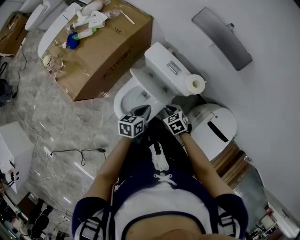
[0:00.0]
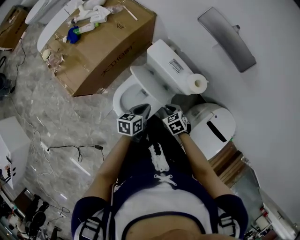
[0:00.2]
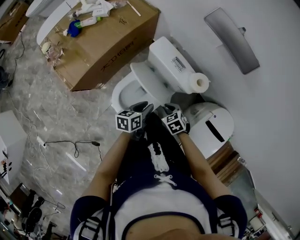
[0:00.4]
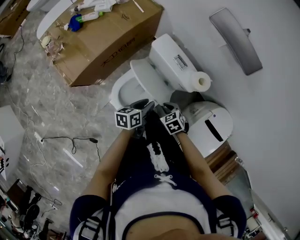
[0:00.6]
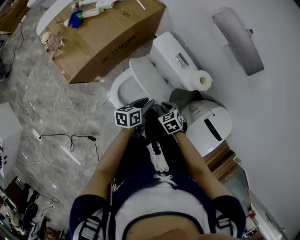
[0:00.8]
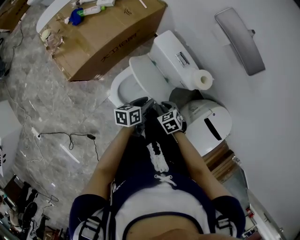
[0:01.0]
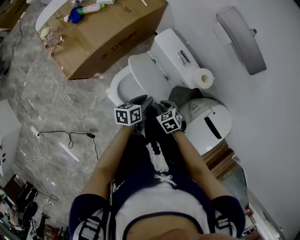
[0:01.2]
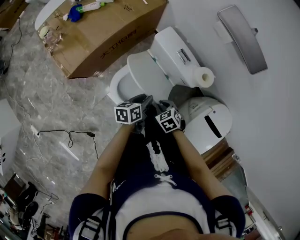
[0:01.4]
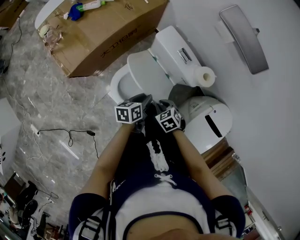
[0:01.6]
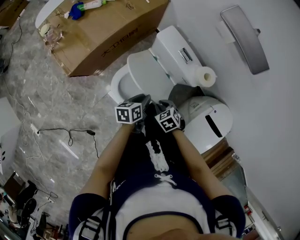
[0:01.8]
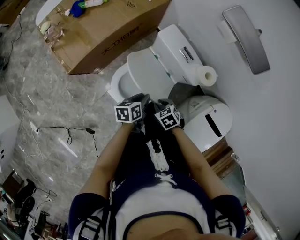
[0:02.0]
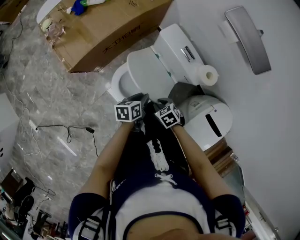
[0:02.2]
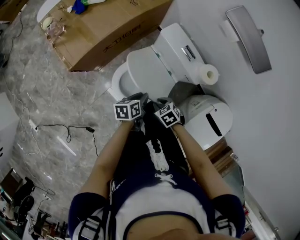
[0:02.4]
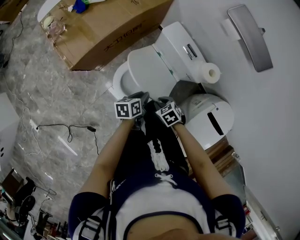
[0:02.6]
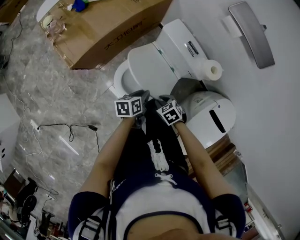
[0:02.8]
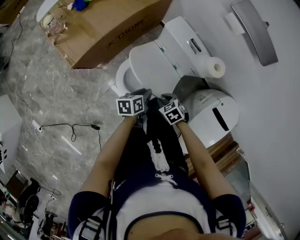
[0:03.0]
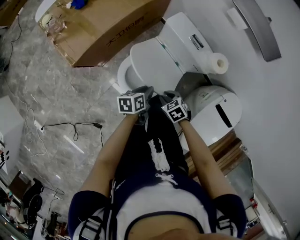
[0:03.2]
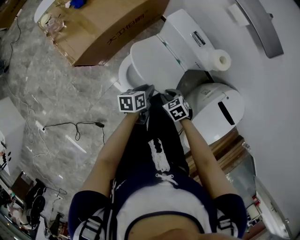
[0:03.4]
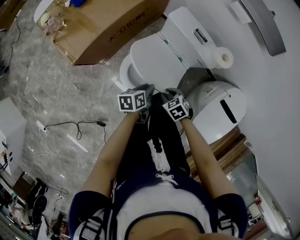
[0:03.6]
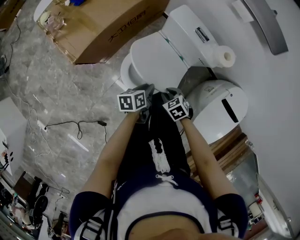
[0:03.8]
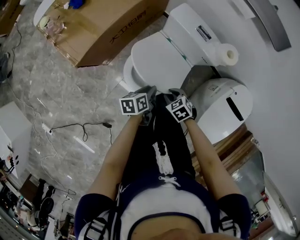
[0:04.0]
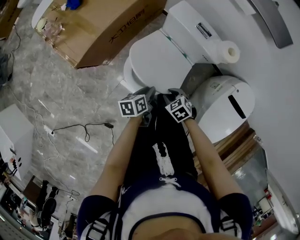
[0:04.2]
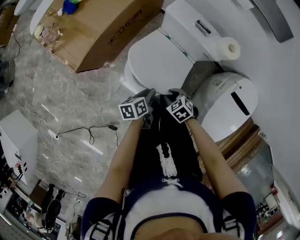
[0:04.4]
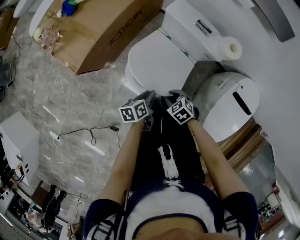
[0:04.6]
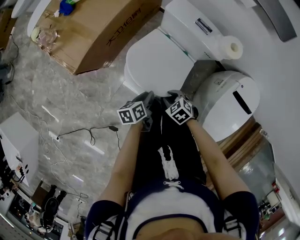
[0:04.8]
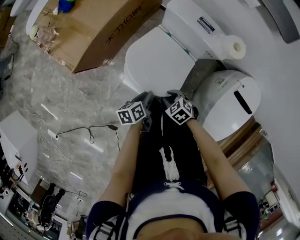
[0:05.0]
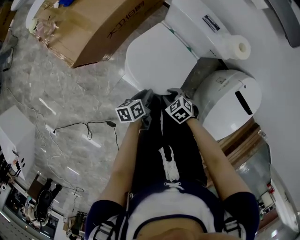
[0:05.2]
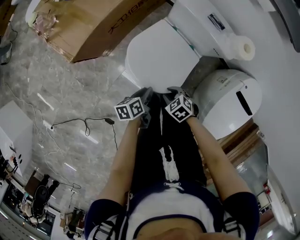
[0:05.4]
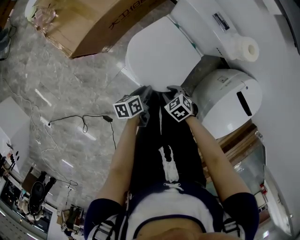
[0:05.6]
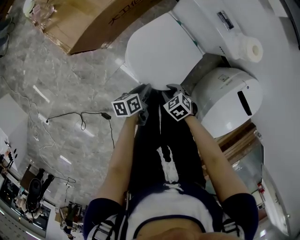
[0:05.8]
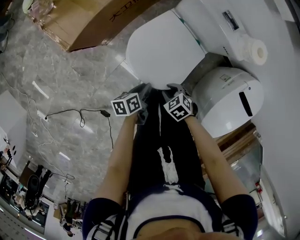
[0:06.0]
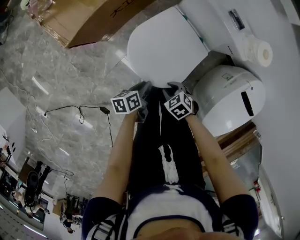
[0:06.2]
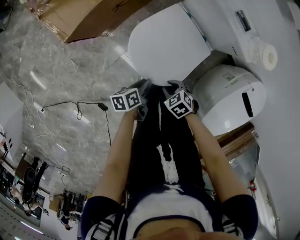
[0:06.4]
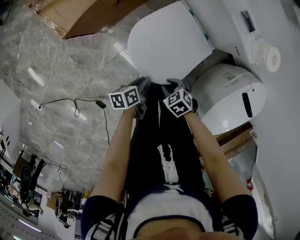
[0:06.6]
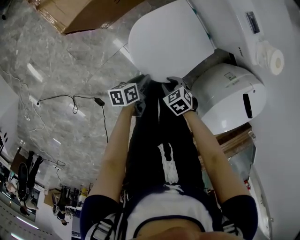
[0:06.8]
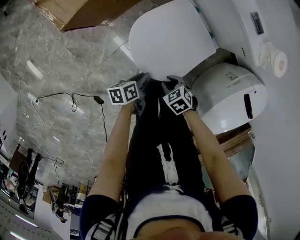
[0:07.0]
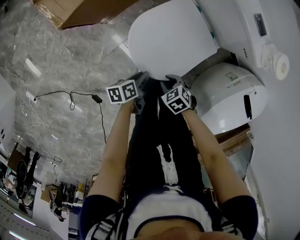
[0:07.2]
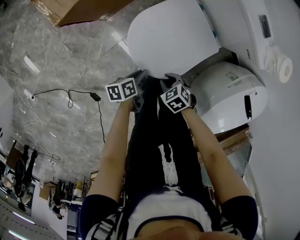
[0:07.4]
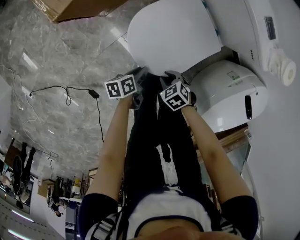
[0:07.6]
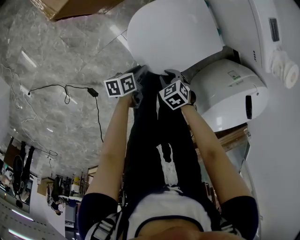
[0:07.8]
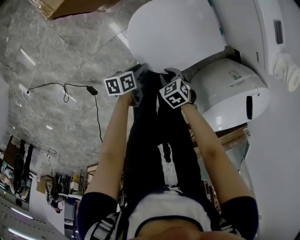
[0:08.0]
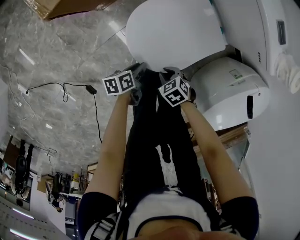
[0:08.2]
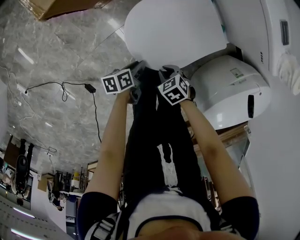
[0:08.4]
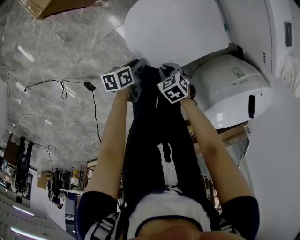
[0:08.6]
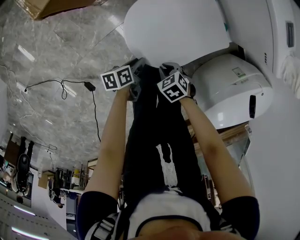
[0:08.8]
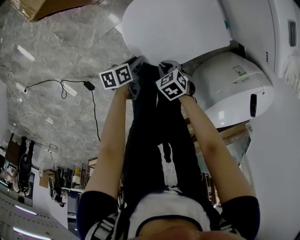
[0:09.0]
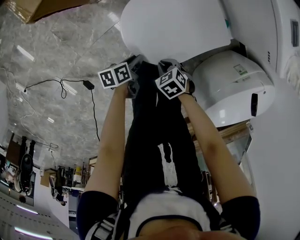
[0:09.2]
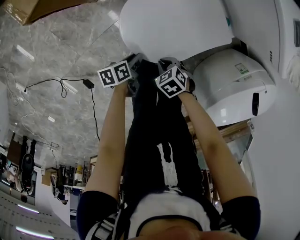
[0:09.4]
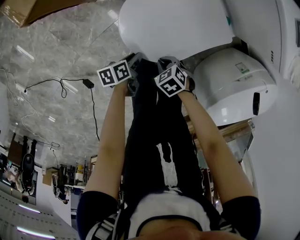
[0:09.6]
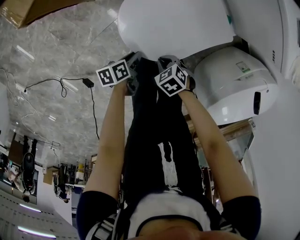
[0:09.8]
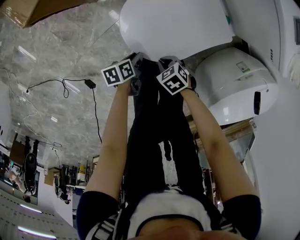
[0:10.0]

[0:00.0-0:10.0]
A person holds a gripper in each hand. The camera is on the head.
0:00.0 to 0:01.4: The right gripper is displaced to the left by some 5 cm, while the left gripper shifts by roughly 5 cm, and opens up.
0:01.4 to 0:02.8: The left gripper moves about 5 cm. The right gripper ends up about 5 cm from where it was.
0:02.8 to 0:04.2: The right gripper ends up approximately 5 cm from where it was; the left gripper moves about 5 cm.
0:04.2 to 0:05.8: The right gripper travels downward by about 5 cm; the left gripper moves downward and to the left, approximately 10 cm.
0:05.8 to 0:07.2: The two grippers go approximately 10 cm downward.
0:07.2 to 0:08.6: Both grippers move downward, about 10 cm.
0:08.6 to 0:10.0: There are only small adjustments of the grippers.

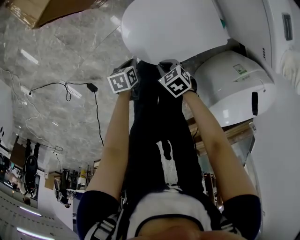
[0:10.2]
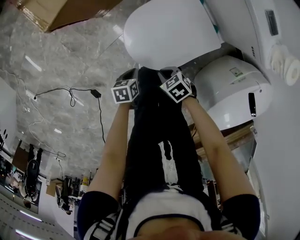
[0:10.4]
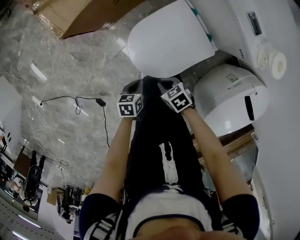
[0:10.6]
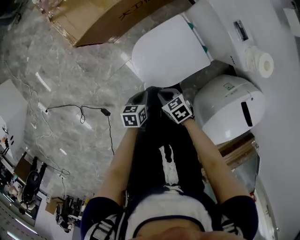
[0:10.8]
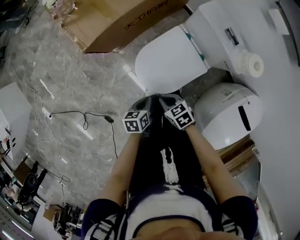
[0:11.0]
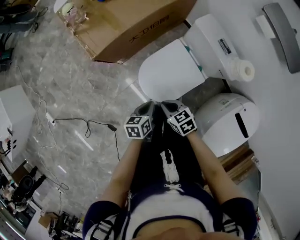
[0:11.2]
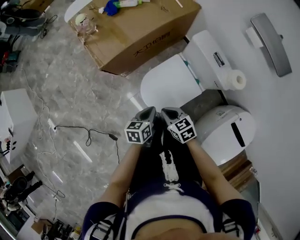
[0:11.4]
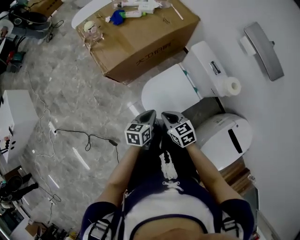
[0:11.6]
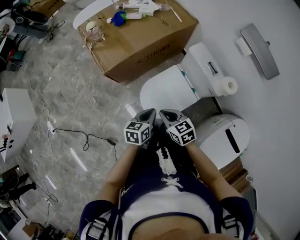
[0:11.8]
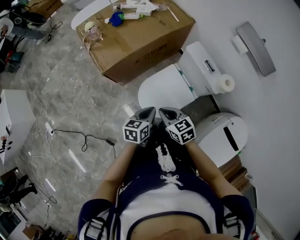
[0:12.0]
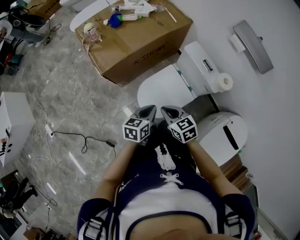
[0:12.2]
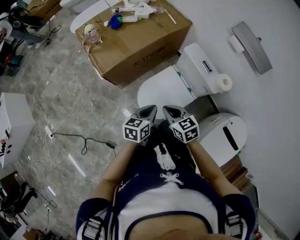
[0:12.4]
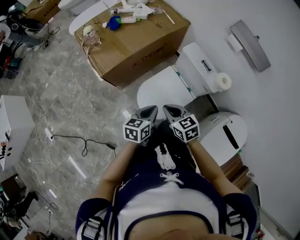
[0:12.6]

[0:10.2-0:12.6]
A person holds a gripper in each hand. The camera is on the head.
0:10.2 to 0:11.4: The two grippers go about 35 cm upward. The left gripper rotates some 30 degrees. The right gripper changes its angle by roughly 30 degrees.
0:11.4 to 0:12.6: The grippers both shift upward by roughly 10 cm.

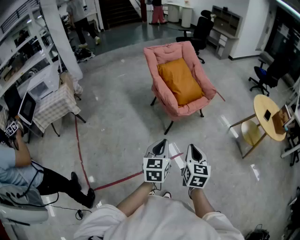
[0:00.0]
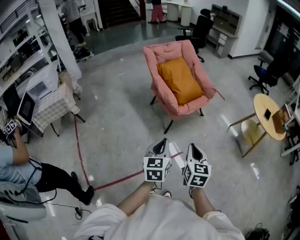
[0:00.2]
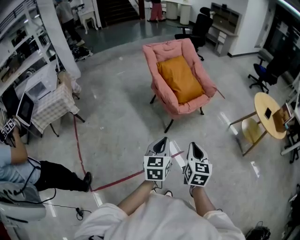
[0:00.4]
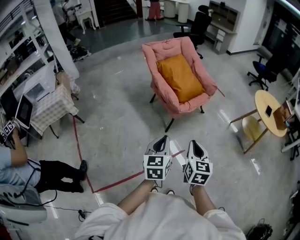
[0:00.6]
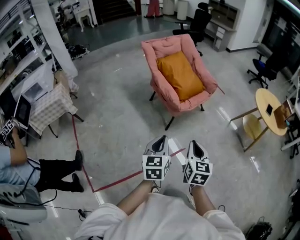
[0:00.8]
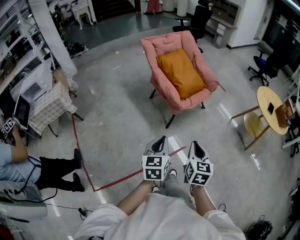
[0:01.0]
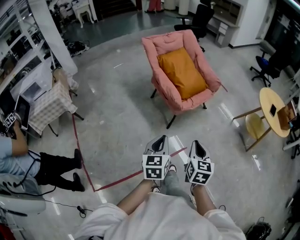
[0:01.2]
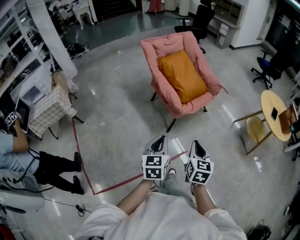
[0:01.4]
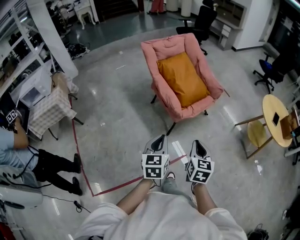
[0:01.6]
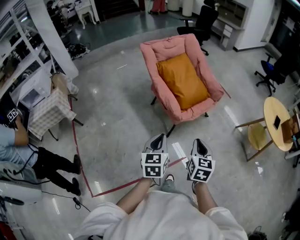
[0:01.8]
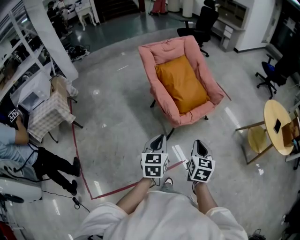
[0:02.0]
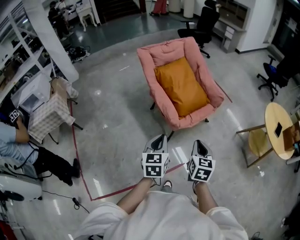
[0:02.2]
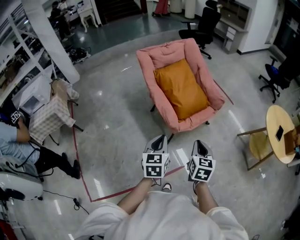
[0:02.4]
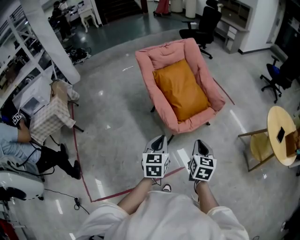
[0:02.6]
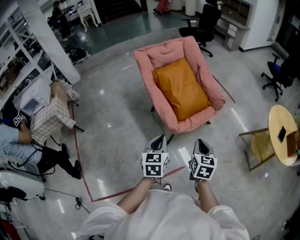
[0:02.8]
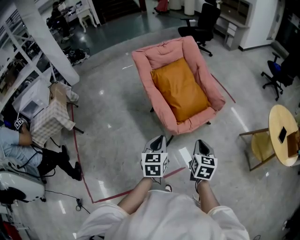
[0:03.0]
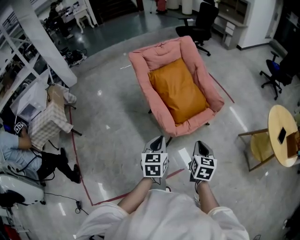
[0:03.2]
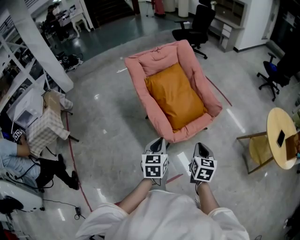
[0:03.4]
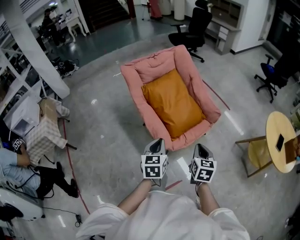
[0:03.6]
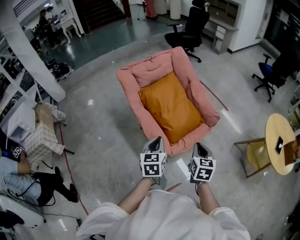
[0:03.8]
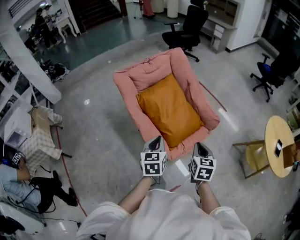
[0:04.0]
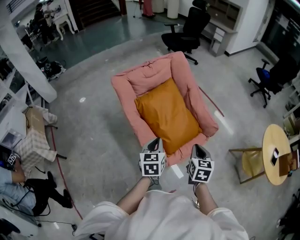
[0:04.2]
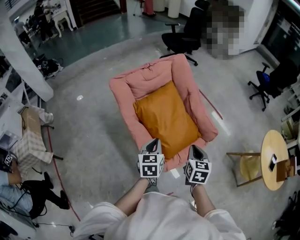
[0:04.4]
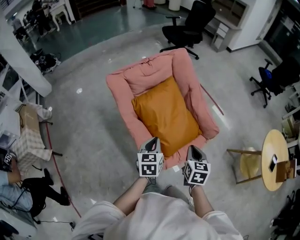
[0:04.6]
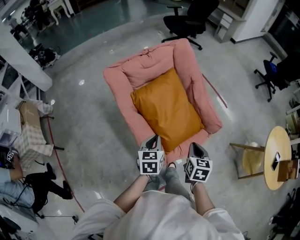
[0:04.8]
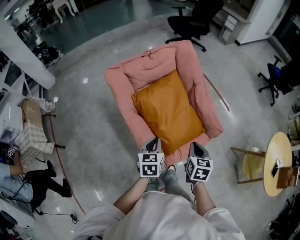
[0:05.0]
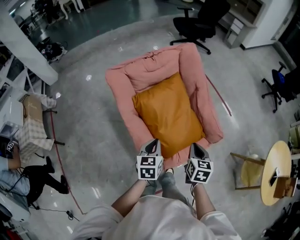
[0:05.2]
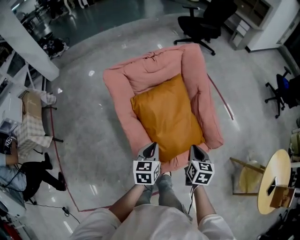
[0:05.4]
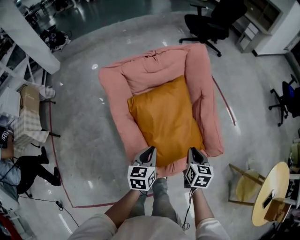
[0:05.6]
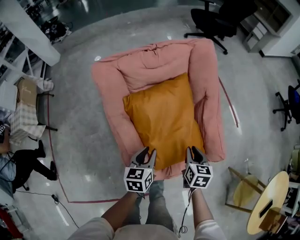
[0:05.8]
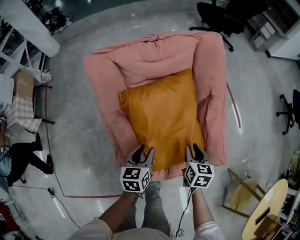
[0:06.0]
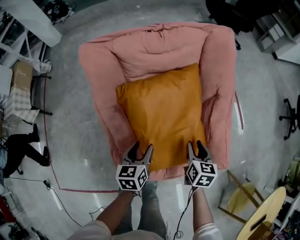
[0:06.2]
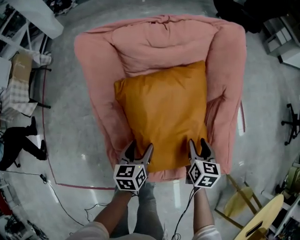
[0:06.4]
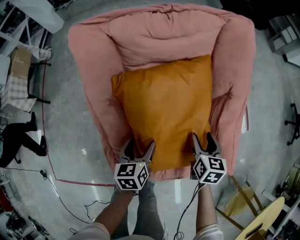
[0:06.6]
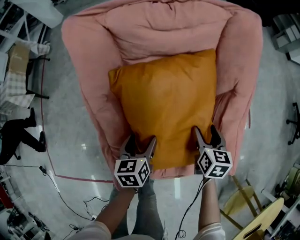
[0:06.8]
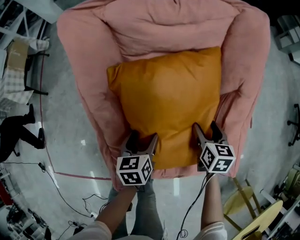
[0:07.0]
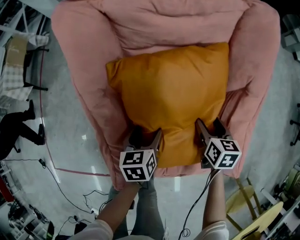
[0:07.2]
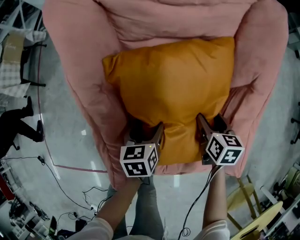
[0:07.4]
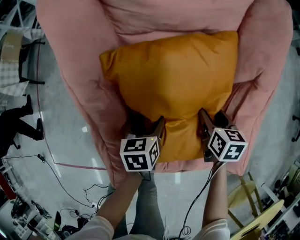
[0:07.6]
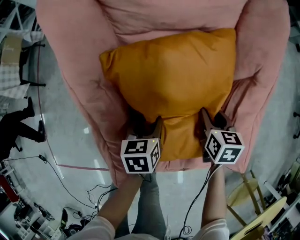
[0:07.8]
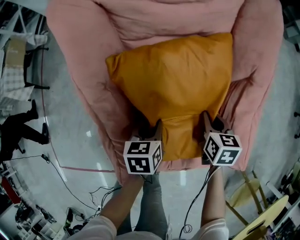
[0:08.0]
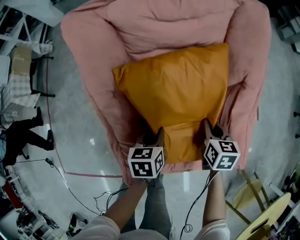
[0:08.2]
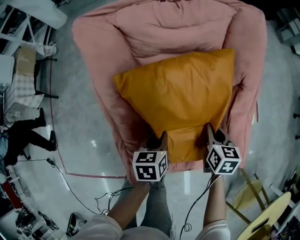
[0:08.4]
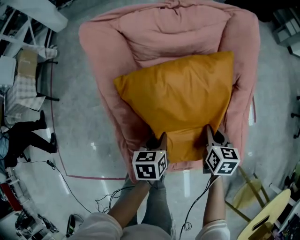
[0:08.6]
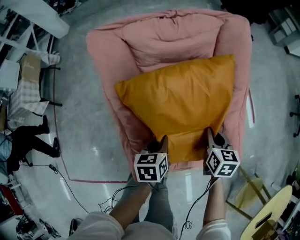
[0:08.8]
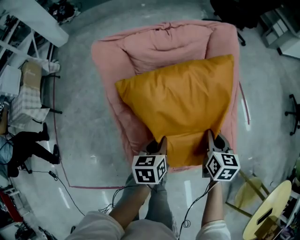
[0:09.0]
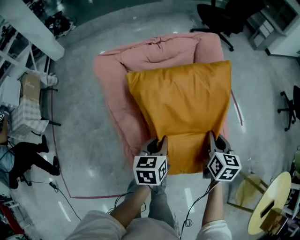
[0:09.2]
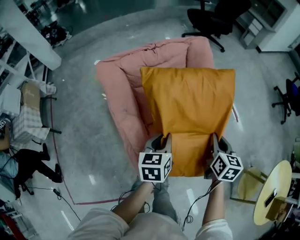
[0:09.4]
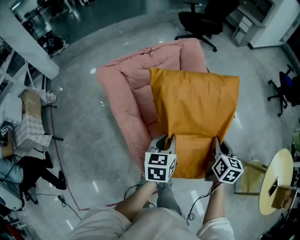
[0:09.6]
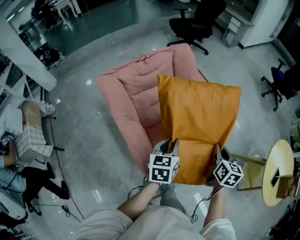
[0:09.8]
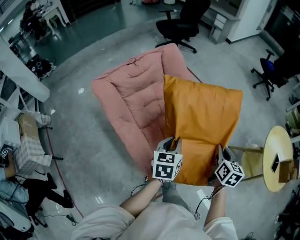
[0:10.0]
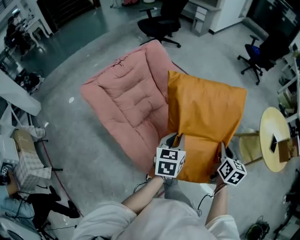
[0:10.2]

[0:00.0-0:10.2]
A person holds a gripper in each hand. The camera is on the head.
0:00.0 to 0:01.4: The right gripper moves forward, some 10 cm. The left gripper moves forward and to the left, about 10 cm.
0:01.4 to 0:03.0: The two grippers go roughly 20 cm forward.
0:03.0 to 0:04.4: Both grippers move forward, some 30 cm.
0:04.4 to 0:05.8: The left gripper travels downward, forward and to the right by approximately 20 cm, while the right gripper is displaced forward and downward by approximately 25 cm, and swivels some 20 degrees.
0:05.8 to 0:07.2: The left gripper shifts some 20 cm downward, turns by approximately 20 degrees, and opens; the right gripper heads downward and forward, covering roughly 20 cm, and opens up.
0:07.2 to 0:08.8: The left gripper moves upward, approximately 10 cm, and closes up, while the right gripper shifts roughly 15 cm upward and backward, and closes up.
0:08.8 to 0:10.2: The left gripper moves upward, some 25 cm, and changes its angle by some 50 degrees, while the right gripper moves roughly 40 cm, and rotates approximately 50 degrees.

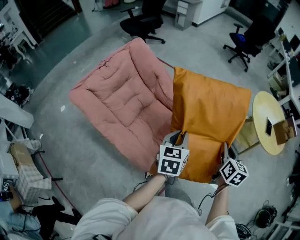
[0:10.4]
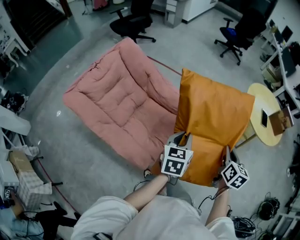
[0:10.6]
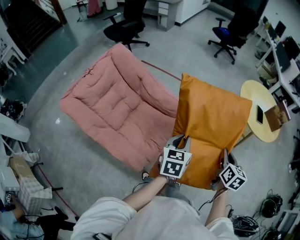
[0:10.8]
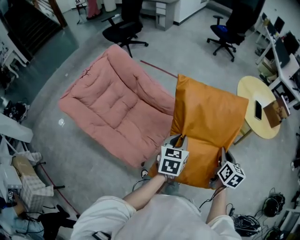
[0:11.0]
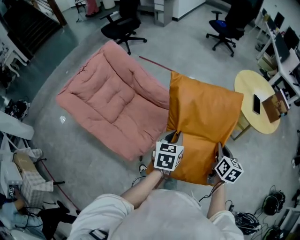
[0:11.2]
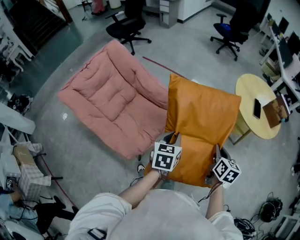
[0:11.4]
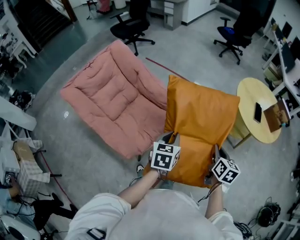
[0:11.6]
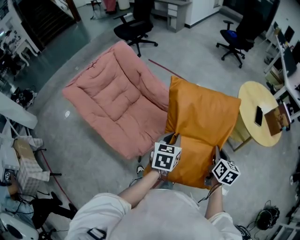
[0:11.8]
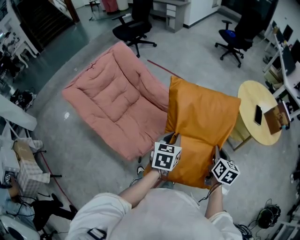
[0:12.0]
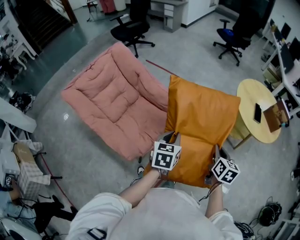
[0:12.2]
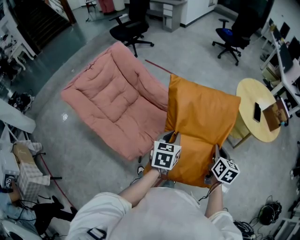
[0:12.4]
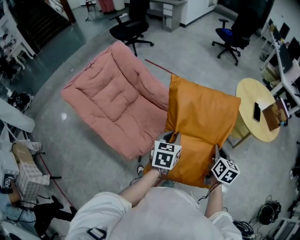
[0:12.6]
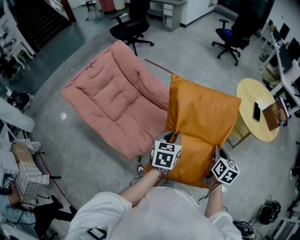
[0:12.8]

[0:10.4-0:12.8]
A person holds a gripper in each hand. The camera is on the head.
0:10.4 to 0:11.6: Both grippers travel together to the right, roughly 15 cm.
0:11.6 to 0:12.8: The grippers stay close to where they were, moving slightly.
